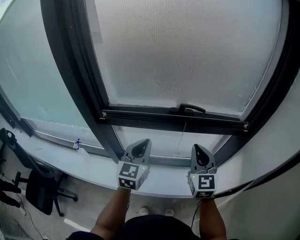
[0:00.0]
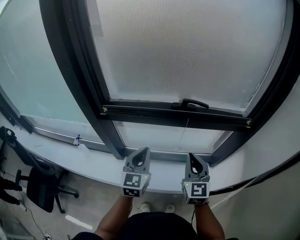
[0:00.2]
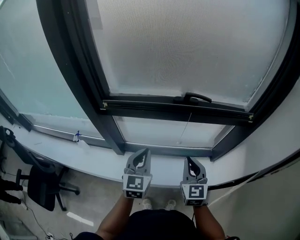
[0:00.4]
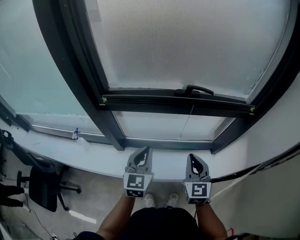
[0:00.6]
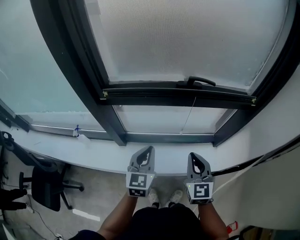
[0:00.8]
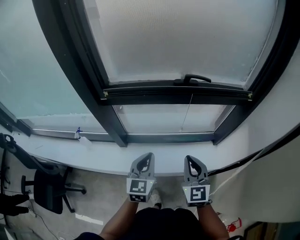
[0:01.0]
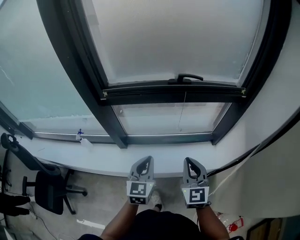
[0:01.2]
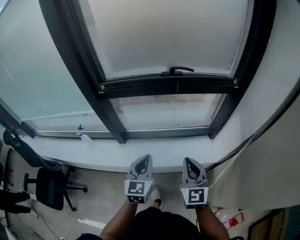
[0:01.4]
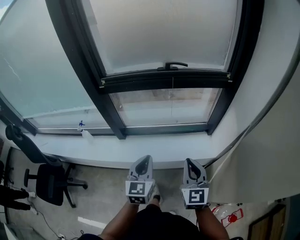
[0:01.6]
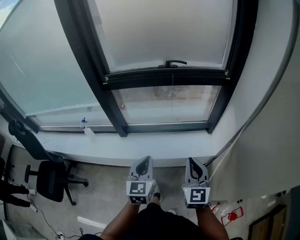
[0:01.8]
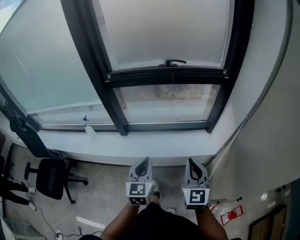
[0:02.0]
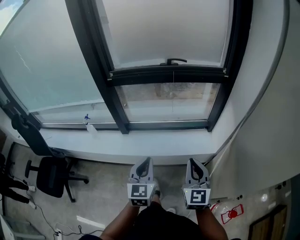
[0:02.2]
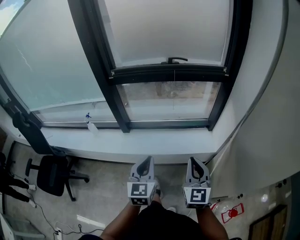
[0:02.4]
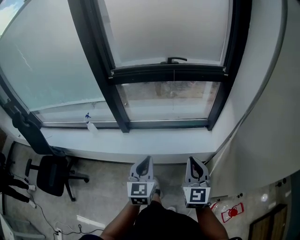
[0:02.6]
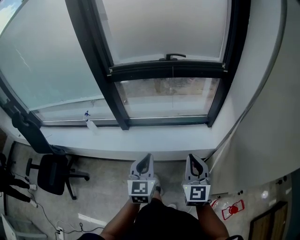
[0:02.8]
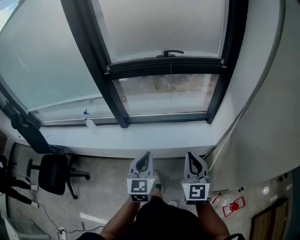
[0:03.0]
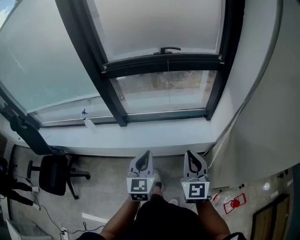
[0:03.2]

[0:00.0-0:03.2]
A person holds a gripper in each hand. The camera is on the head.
0:00.0 to 0:01.6: The left gripper shifts approximately 30 cm backward and downward, while the right gripper heads backward, covering roughly 30 cm.
0:01.6 to 0:03.2: Both grippers travel together backward, some 10 cm.

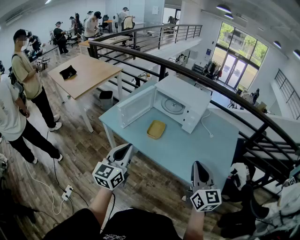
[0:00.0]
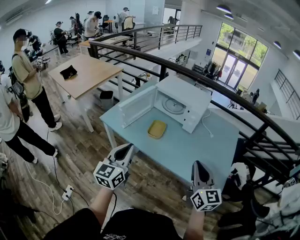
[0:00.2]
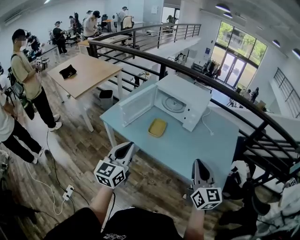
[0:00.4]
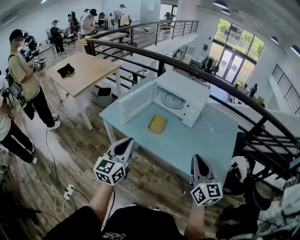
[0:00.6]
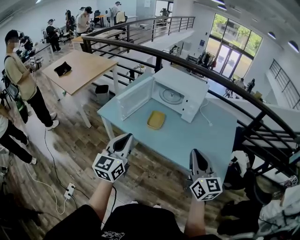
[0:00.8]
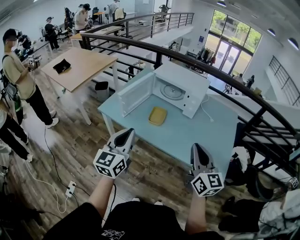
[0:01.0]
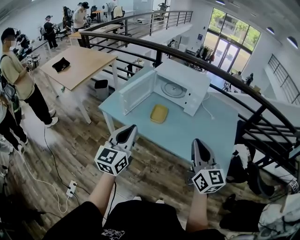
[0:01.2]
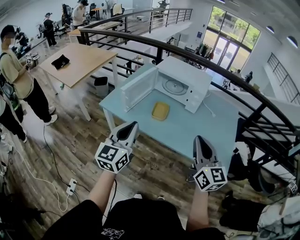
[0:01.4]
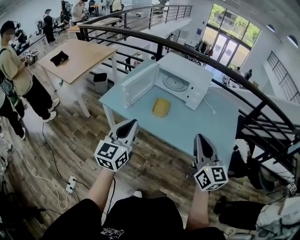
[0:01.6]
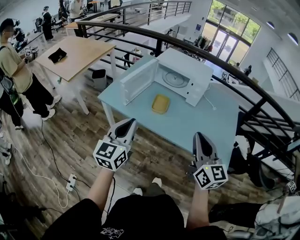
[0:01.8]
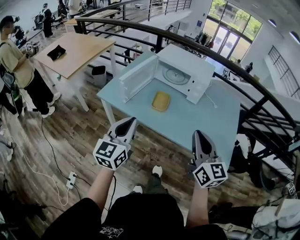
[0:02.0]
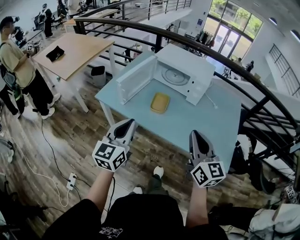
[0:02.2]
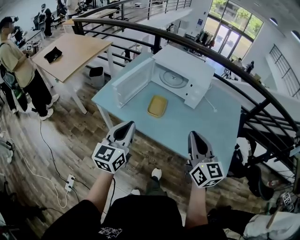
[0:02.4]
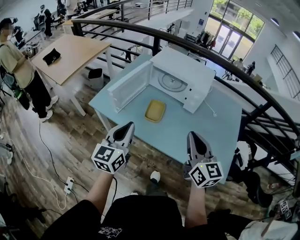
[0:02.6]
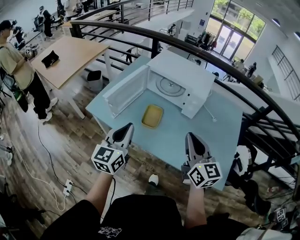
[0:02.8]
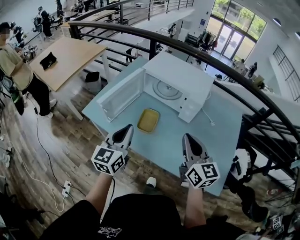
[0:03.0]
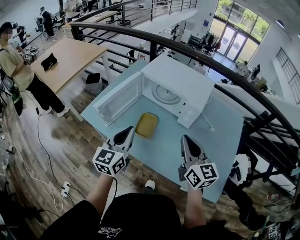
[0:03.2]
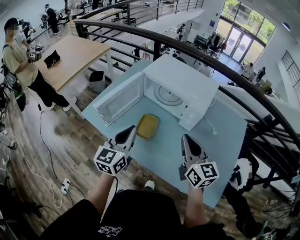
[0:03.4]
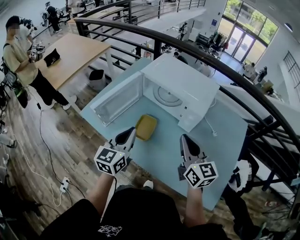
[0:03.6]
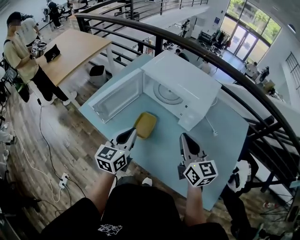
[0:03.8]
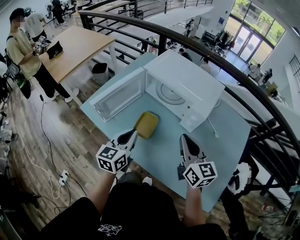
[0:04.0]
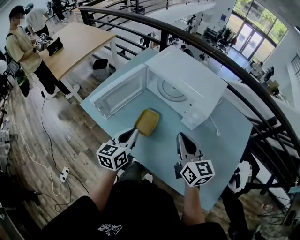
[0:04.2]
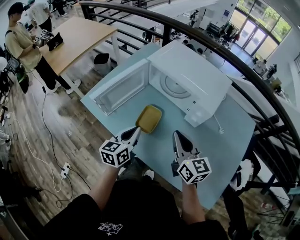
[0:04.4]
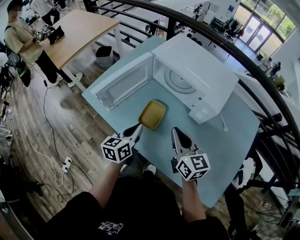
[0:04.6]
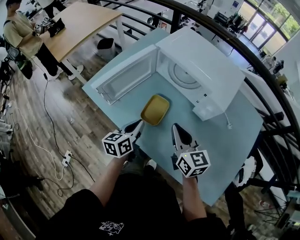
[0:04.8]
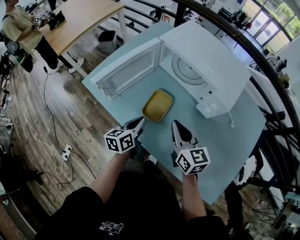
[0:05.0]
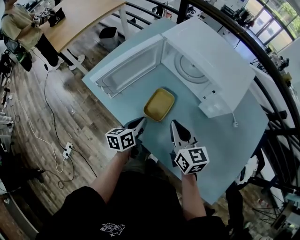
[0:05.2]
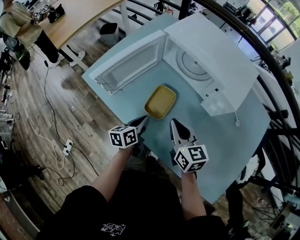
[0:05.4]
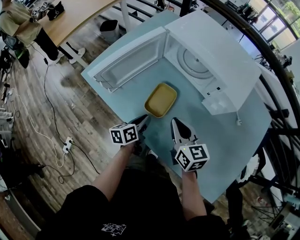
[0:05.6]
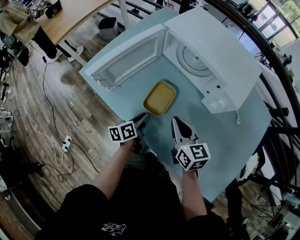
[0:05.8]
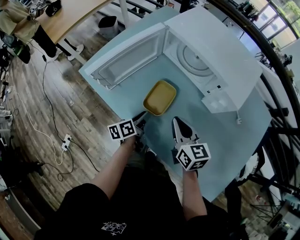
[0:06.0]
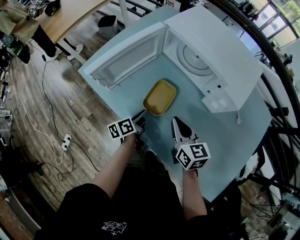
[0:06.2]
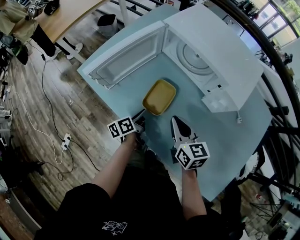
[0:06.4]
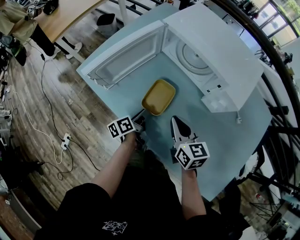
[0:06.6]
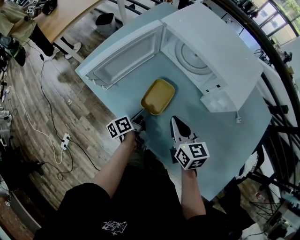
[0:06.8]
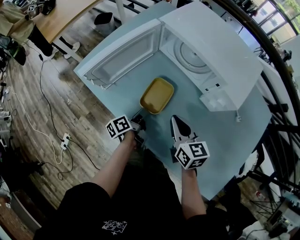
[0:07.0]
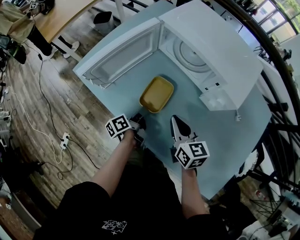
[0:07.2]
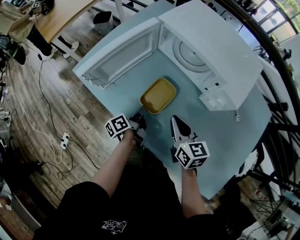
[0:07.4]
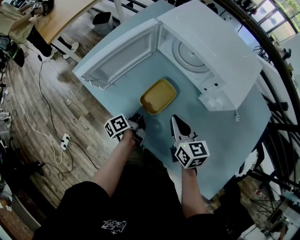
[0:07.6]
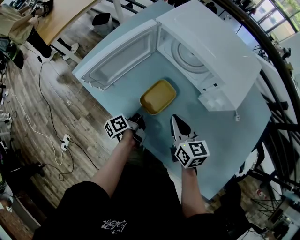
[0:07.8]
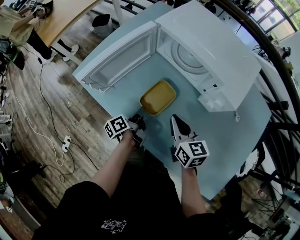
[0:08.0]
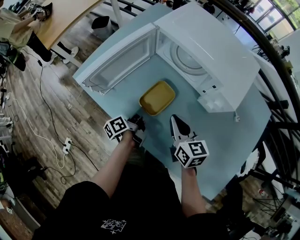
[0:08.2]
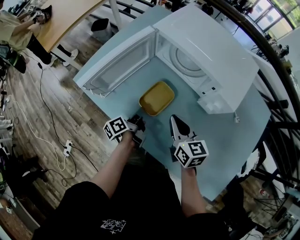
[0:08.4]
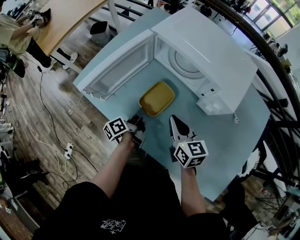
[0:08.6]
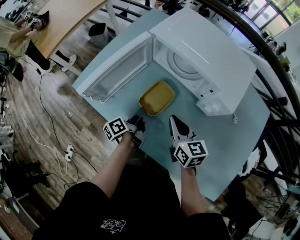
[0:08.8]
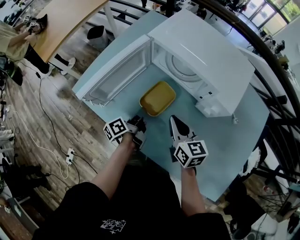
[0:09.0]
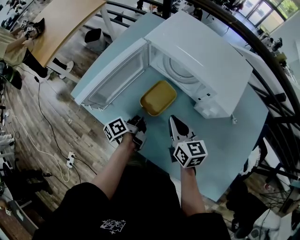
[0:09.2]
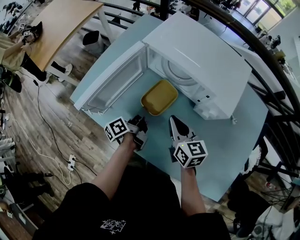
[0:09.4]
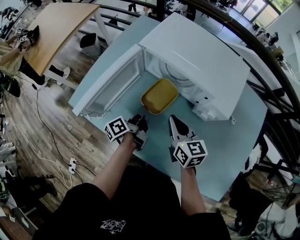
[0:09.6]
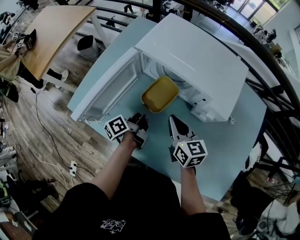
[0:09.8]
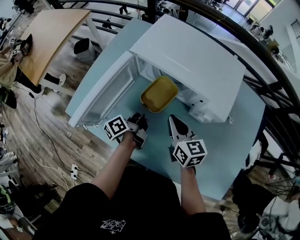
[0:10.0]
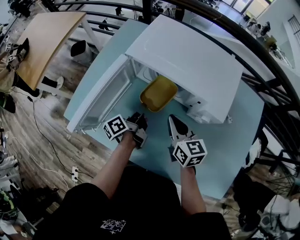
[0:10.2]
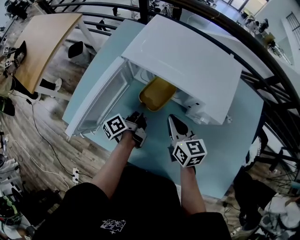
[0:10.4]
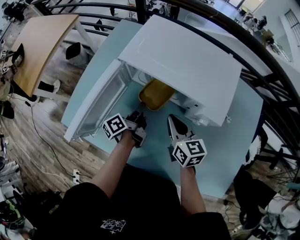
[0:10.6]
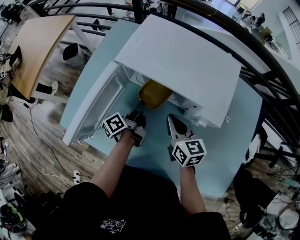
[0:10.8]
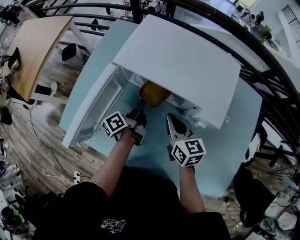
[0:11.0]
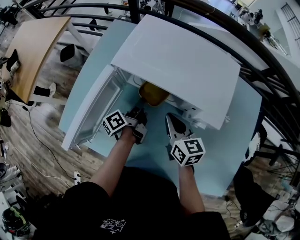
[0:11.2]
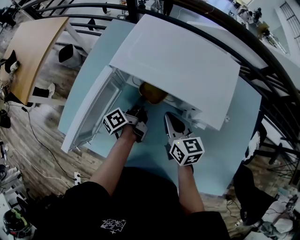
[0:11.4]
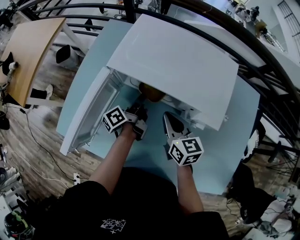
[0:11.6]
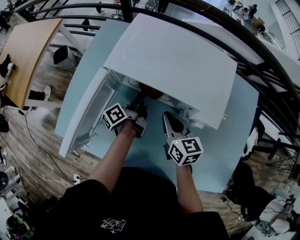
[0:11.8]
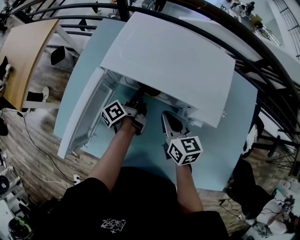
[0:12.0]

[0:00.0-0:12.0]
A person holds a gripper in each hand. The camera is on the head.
0:00.0 to 0:01.6: The right gripper moves to the left, about 10 cm, while the left gripper shifts approximately 5 cm to the left.
0:01.6 to 0:03.0: The two grippers go approximately 20 cm forward.
0:03.0 to 0:04.4: The left gripper heads downward and forward, covering about 15 cm, and turns by roughly 20 degrees. Meanwhile the right gripper is displaced forward and downward by about 15 cm.
0:04.4 to 0:06.0: The grippers both shift downward by approximately 15 cm. The left gripper rolls counterclockwise, seen from behind, by approximately 40 degrees.
0:06.0 to 0:07.6: The left gripper changes its angle by approximately 20 degrees.
0:07.6 to 0:09.0: The left gripper is displaced forward by some 5 cm.
0:09.0 to 0:10.4: The right gripper moves forward, about 10 cm. The left gripper moves forward and to the right, some 15 cm.
0:10.4 to 0:12.0: The left gripper travels forward by some 10 cm.

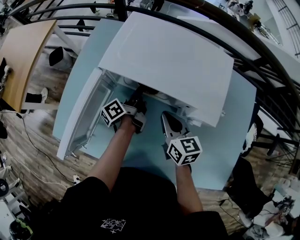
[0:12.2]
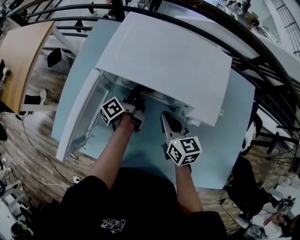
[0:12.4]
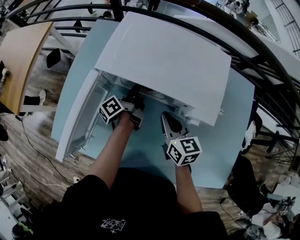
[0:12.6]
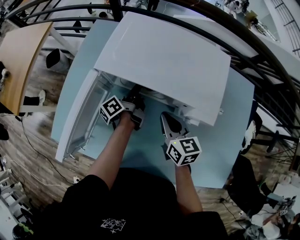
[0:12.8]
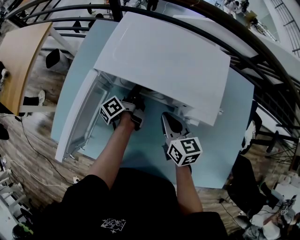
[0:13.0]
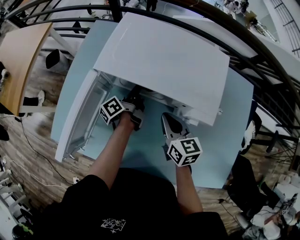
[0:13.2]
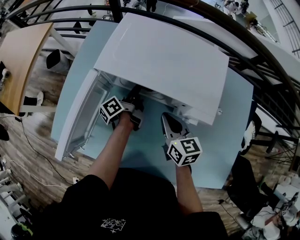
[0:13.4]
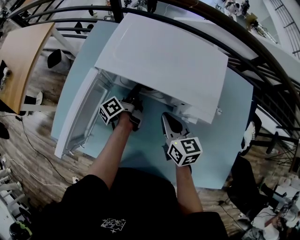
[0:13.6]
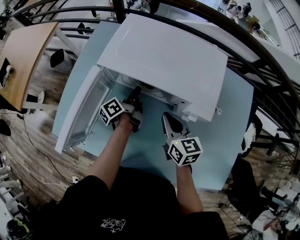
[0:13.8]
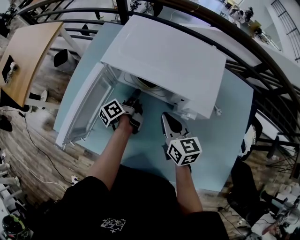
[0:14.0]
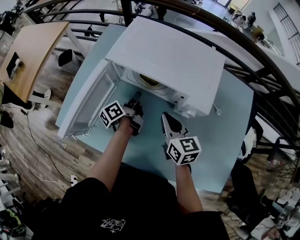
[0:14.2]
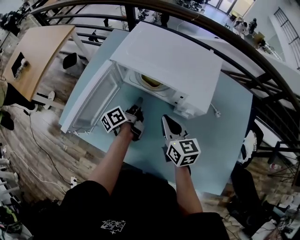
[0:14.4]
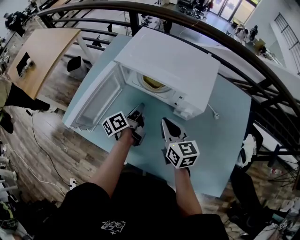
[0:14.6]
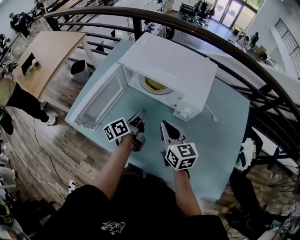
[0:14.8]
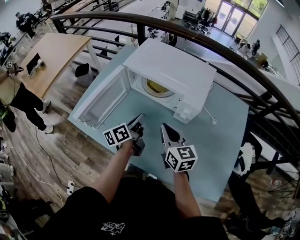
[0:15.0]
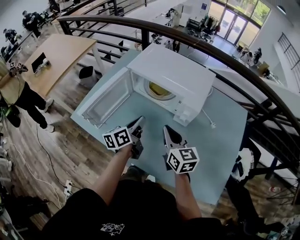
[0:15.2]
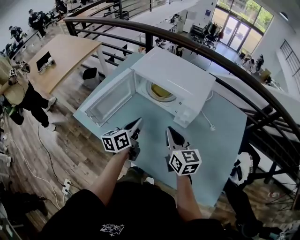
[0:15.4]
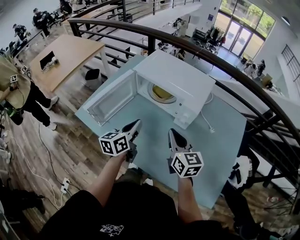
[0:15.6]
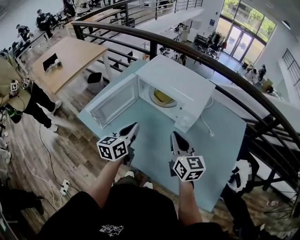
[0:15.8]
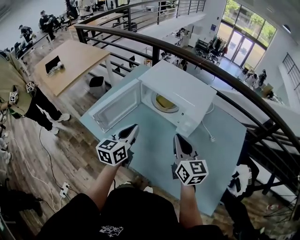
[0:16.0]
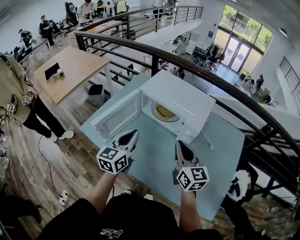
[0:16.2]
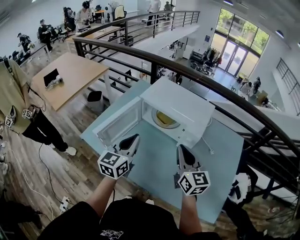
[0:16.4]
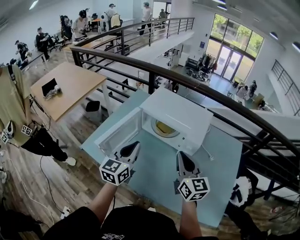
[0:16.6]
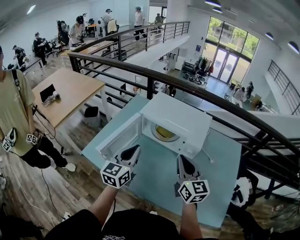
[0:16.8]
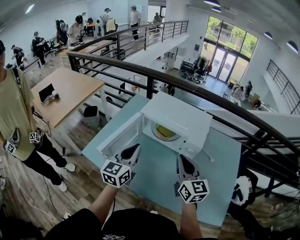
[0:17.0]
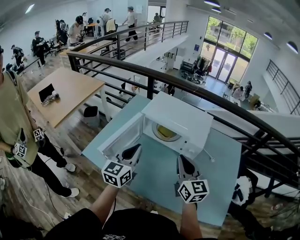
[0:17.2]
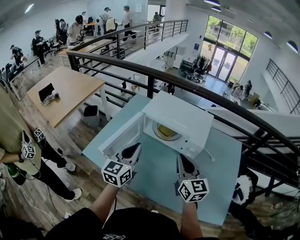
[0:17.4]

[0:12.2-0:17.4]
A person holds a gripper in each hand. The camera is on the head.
0:12.2 to 0:14.0: There are only small adjustments of the grippers.
0:14.0 to 0:15.6: The left gripper heads backward and upward, covering roughly 30 cm, and rolls clockwise, seen from behind, by approximately 50 degrees. The right gripper travels backward and upward by approximately 20 cm.
0:15.6 to 0:17.4: The grippers both shift upward and to the left by some 15 cm. The left gripper changes its angle by some 30 degrees.

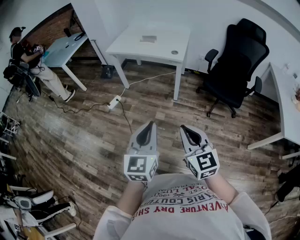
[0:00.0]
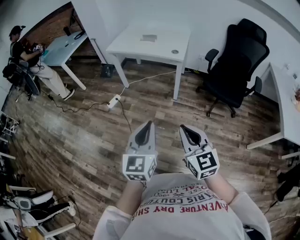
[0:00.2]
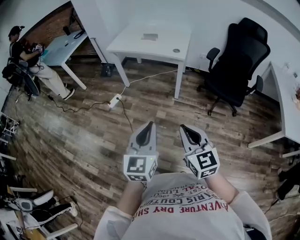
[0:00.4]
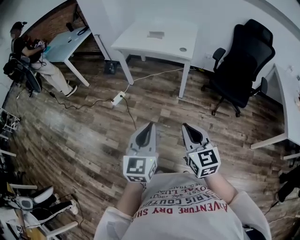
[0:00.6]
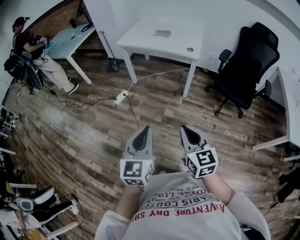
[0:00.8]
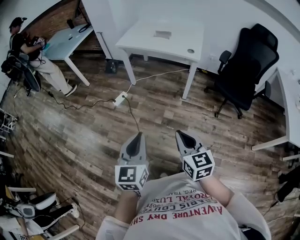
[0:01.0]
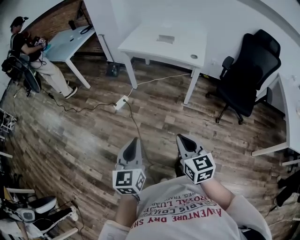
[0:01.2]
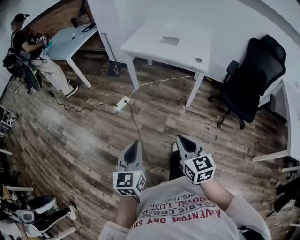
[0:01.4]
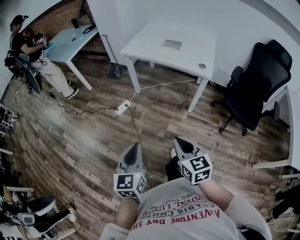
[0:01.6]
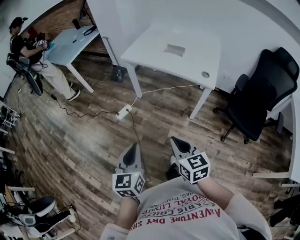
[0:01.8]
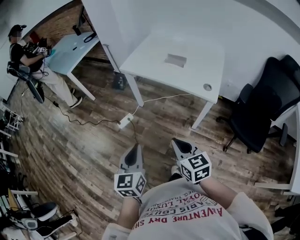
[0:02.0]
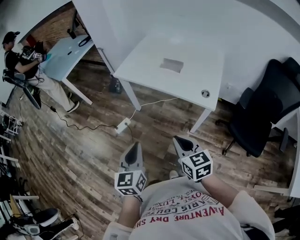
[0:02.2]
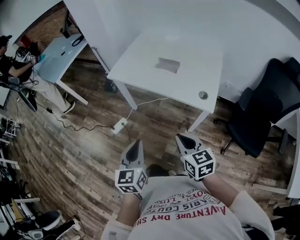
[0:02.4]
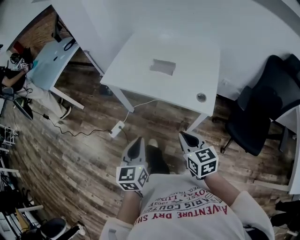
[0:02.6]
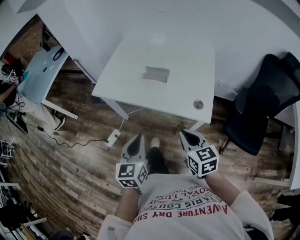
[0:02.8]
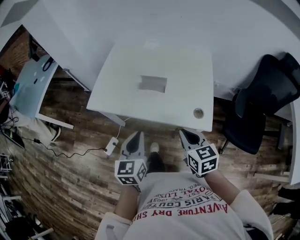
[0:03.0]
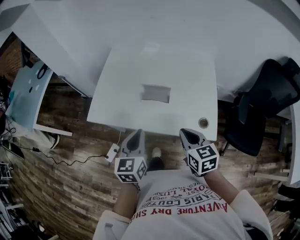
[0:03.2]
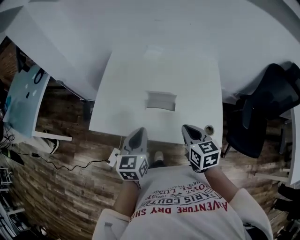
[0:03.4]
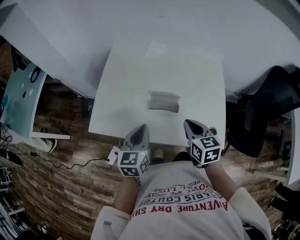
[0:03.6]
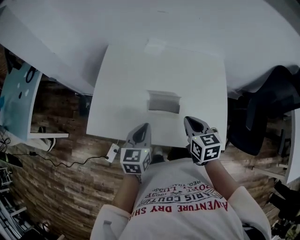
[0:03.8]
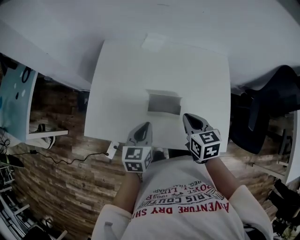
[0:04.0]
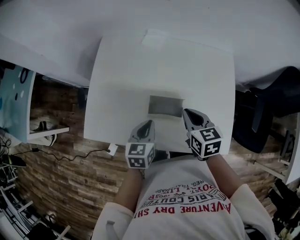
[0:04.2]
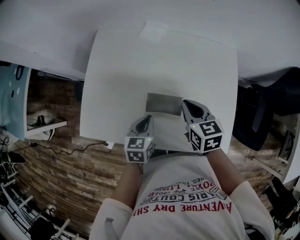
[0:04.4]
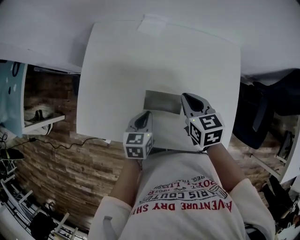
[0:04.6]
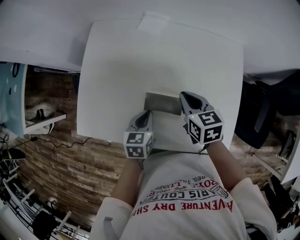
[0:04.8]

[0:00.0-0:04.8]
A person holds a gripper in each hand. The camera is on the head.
0:00.0 to 0:01.6: The right gripper is displaced forward, to the left and downward by roughly 30 cm, while the left gripper heads to the left, forward and downward, covering approximately 30 cm.
0:01.6 to 0:03.2: The pair of grippers is taken forward, roughly 60 cm.
0:03.2 to 0:04.8: The left gripper heads forward and downward, covering roughly 30 cm, and swivels about 30 degrees. Meanwhile the right gripper is displaced forward by about 30 cm.
